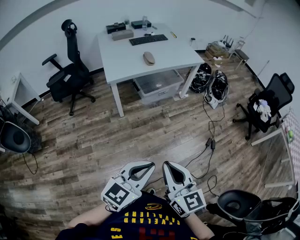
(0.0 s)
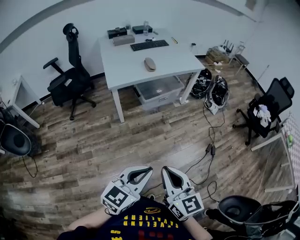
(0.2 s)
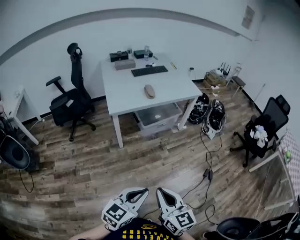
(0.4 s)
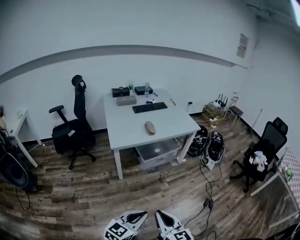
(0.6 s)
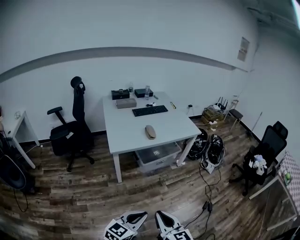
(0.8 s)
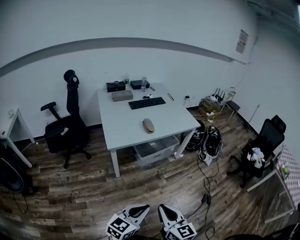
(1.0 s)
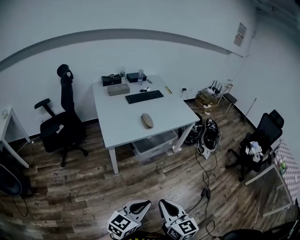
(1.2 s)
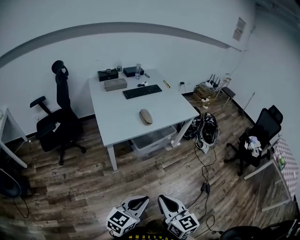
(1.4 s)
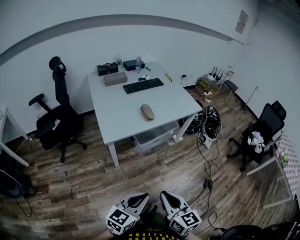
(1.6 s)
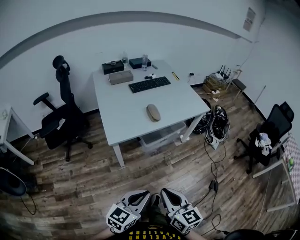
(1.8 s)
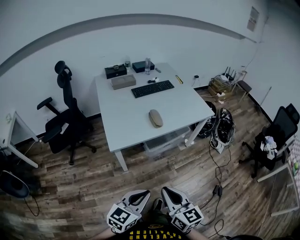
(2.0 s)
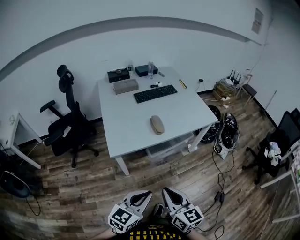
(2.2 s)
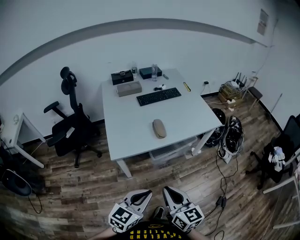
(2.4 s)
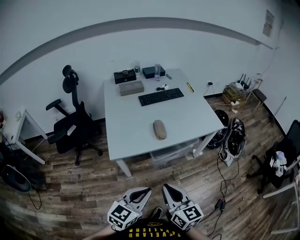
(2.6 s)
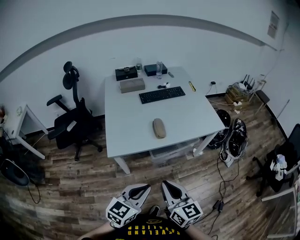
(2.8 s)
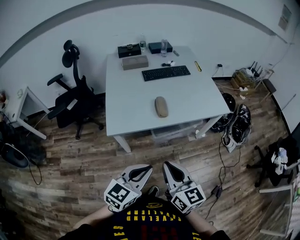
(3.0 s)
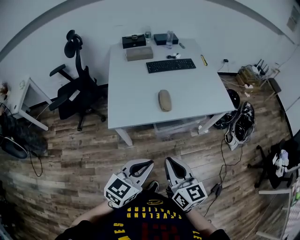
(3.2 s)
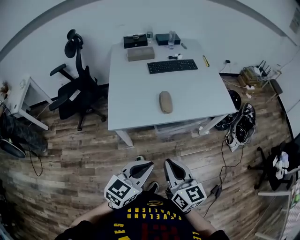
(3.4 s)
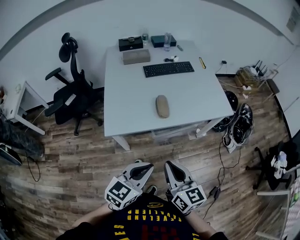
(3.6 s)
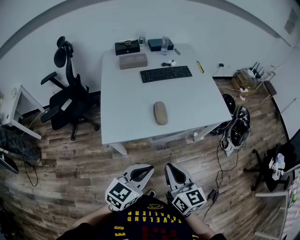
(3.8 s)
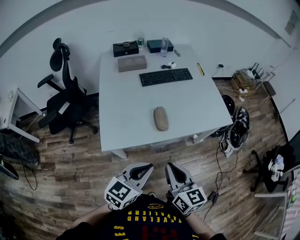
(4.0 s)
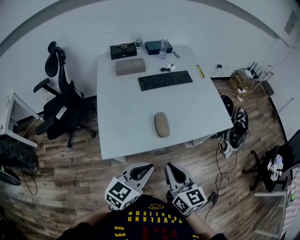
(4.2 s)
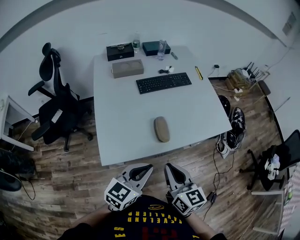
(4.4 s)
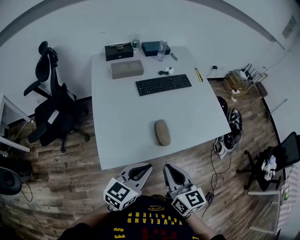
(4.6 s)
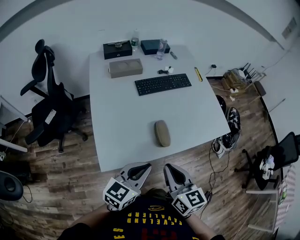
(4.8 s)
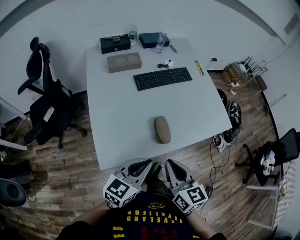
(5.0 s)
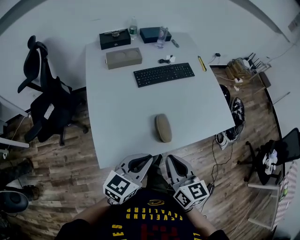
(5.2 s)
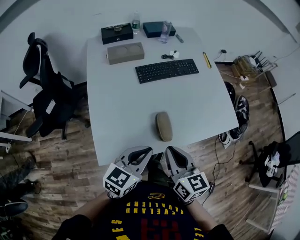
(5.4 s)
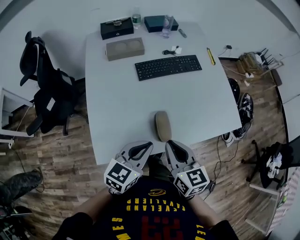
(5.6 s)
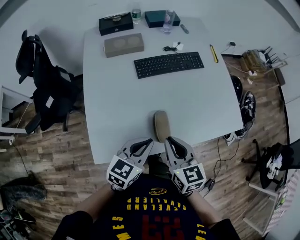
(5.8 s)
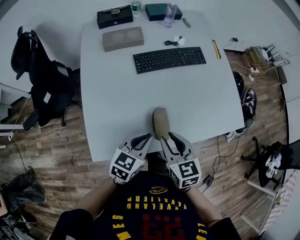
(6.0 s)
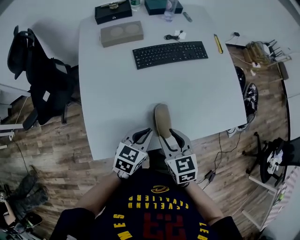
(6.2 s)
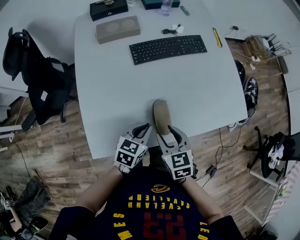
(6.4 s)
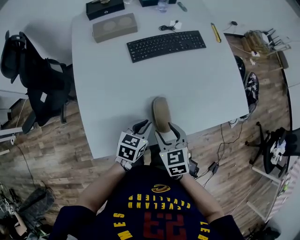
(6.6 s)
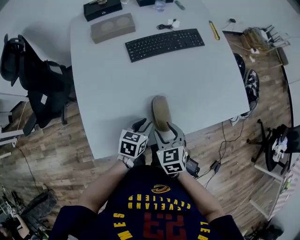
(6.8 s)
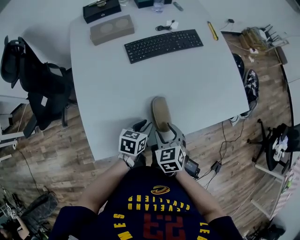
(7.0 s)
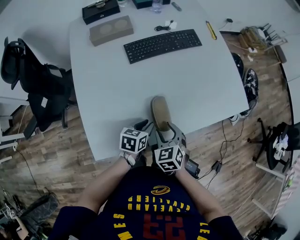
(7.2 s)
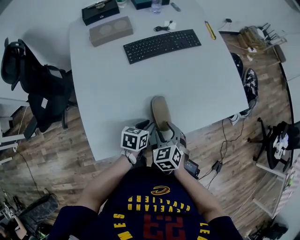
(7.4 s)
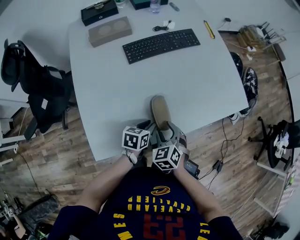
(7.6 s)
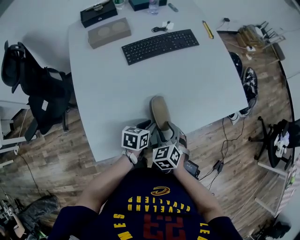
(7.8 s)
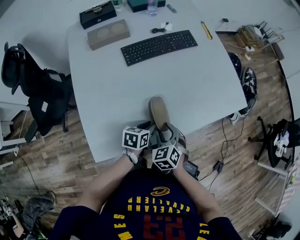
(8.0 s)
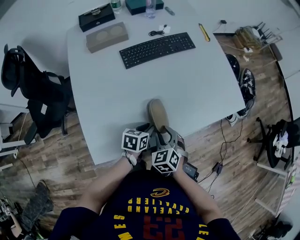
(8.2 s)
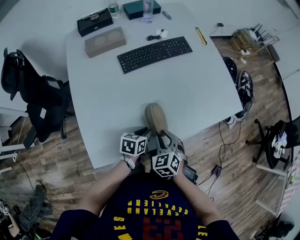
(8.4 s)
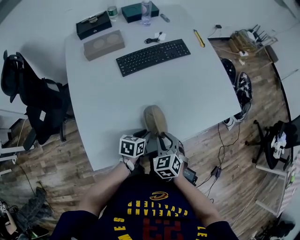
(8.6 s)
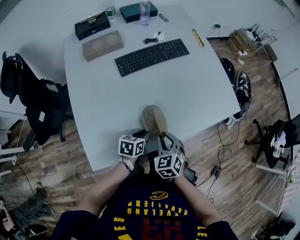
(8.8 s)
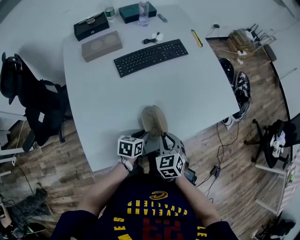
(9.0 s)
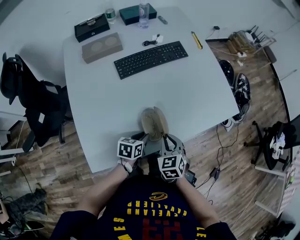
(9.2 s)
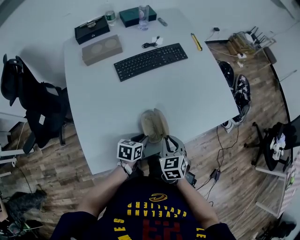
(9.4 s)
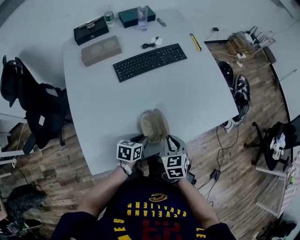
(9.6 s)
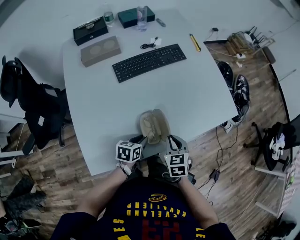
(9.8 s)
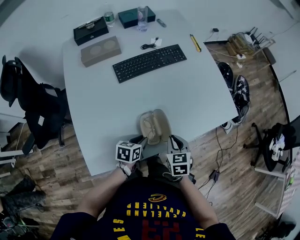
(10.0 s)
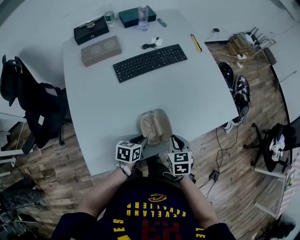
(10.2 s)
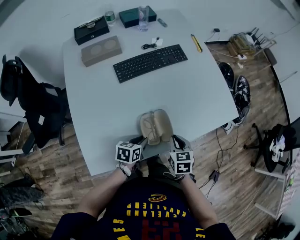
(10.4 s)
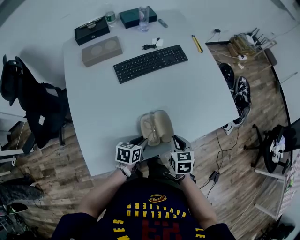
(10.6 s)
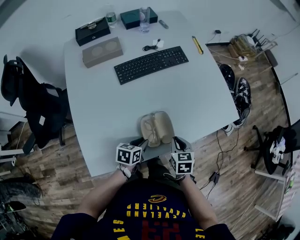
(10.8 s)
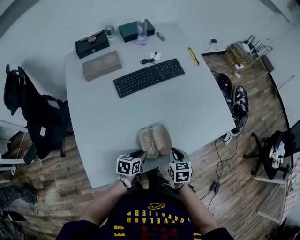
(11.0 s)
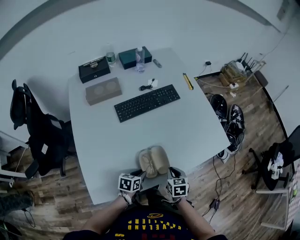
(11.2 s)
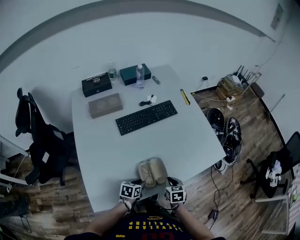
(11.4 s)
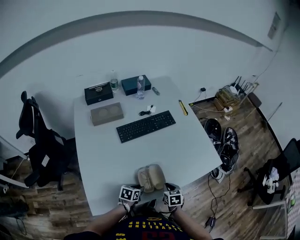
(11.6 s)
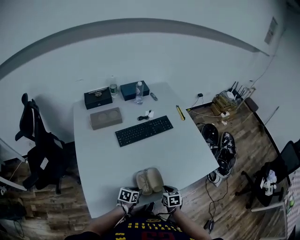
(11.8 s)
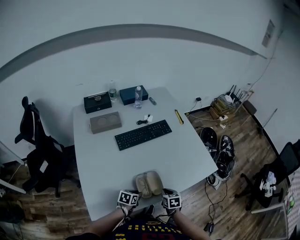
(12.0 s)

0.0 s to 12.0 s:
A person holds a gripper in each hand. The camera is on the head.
0.0 to 1.6 s: Both grippers move forward and to the left, approximately 25 cm.
1.6 to 3.0 s: Both grippers move forward, approximately 20 cm.
3.0 to 4.4 s: Both grippers travel together forward, some 20 cm.
4.4 to 6.0 s: The grippers both shift forward and downward by roughly 20 cm. The right gripper turns by some 20 degrees, and opens up.
6.0 to 7.6 s: Both grippers travel together downward, some 15 cm. The right gripper swivels roughly 30 degrees, and opens its fingers. Meanwhile the left gripper rotates approximately 30 degrees, and opens.
7.6 to 9.0 s: The right gripper closes.
9.0 to 10.4 s: The right gripper moves to the right, about 5 cm, and swivels some 20 degrees.
10.4 to 12.0 s: The grippers move only a little.

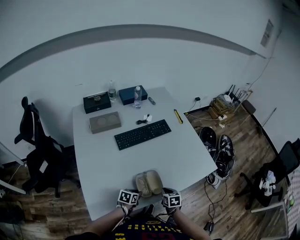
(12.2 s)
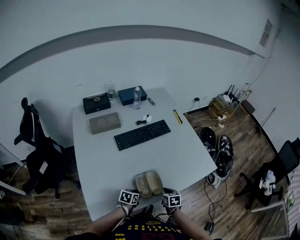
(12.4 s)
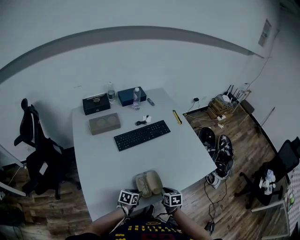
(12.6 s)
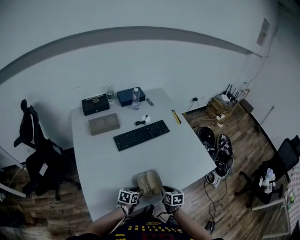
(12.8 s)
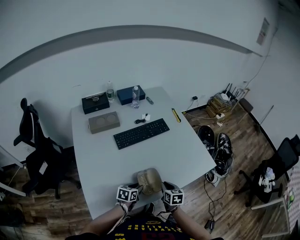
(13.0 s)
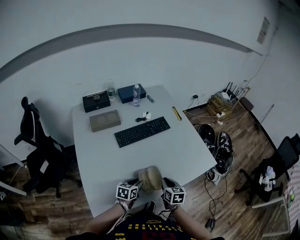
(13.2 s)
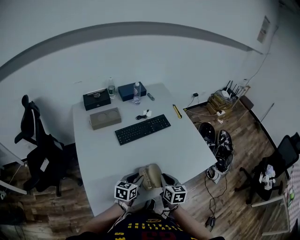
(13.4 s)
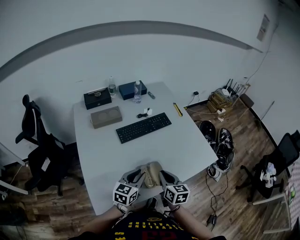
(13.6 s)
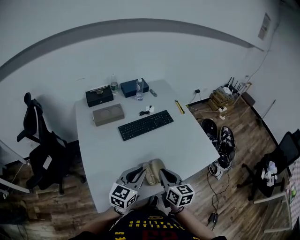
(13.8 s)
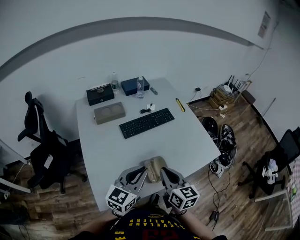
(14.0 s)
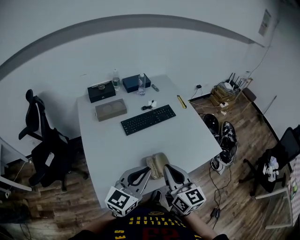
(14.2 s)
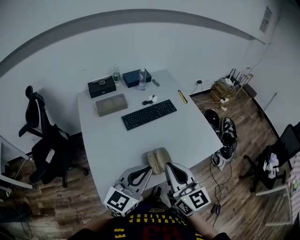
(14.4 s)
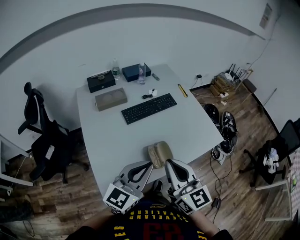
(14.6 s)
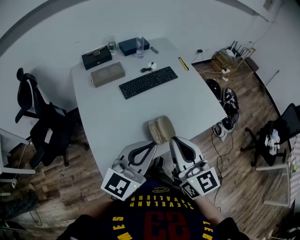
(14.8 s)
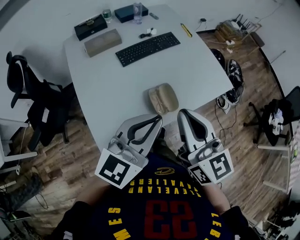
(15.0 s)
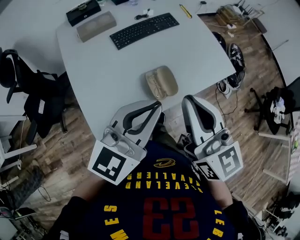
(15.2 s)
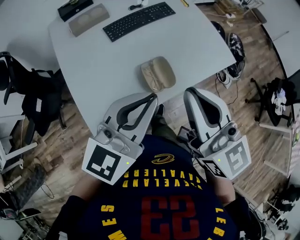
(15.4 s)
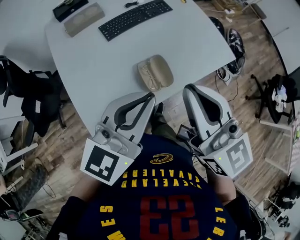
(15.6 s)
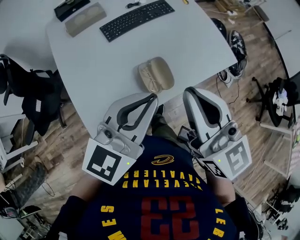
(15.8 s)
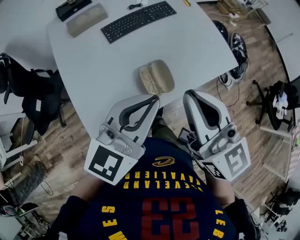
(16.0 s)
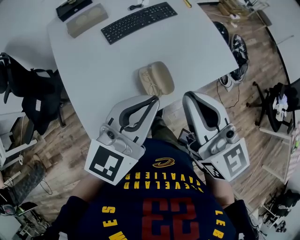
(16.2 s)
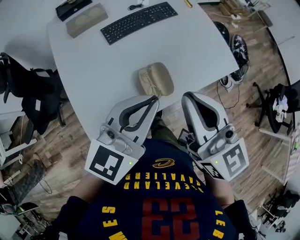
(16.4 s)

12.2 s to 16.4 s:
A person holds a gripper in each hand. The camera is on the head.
12.2 to 13.6 s: The two grippers go some 20 cm upward. The left gripper rotates some 40 degrees. Meanwhile the right gripper changes its angle by approximately 30 degrees.
13.6 to 15.0 s: The grippers both shift upward and backward by approximately 20 cm. The right gripper rotates approximately 30 degrees. The left gripper rotates approximately 20 degrees, and closes its fingers.
15.0 to 16.4 s: The right gripper ends up roughly 5 cm from where it was. Meanwhile the left gripper moves forward, roughly 5 cm.

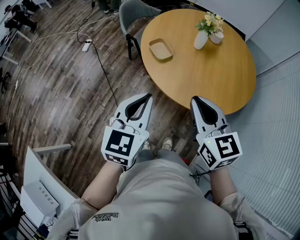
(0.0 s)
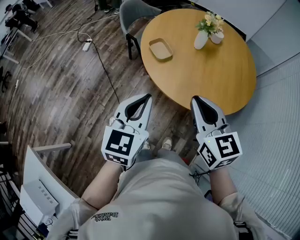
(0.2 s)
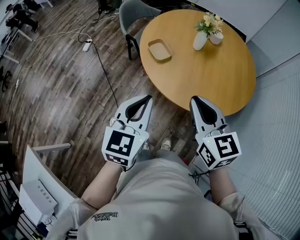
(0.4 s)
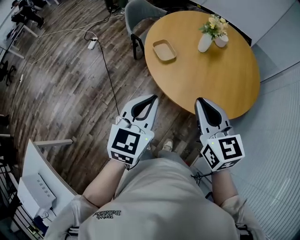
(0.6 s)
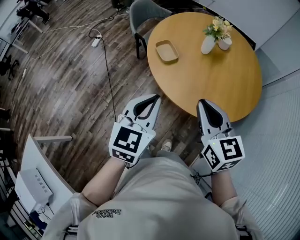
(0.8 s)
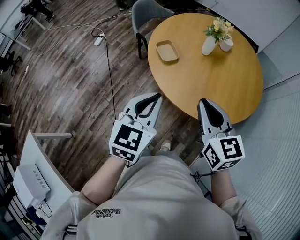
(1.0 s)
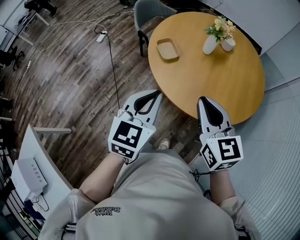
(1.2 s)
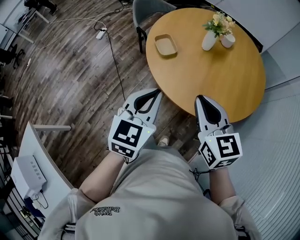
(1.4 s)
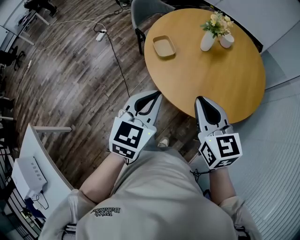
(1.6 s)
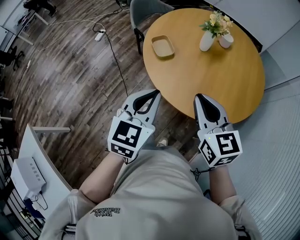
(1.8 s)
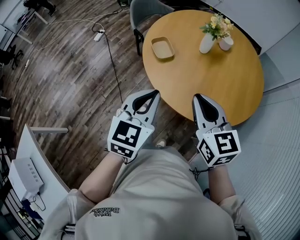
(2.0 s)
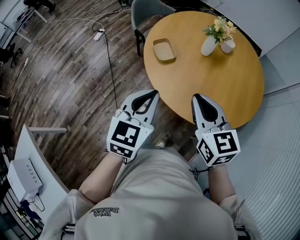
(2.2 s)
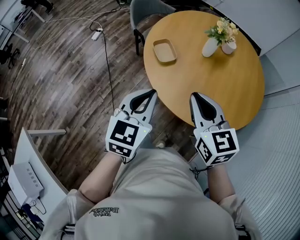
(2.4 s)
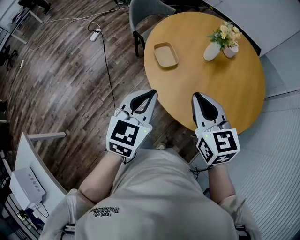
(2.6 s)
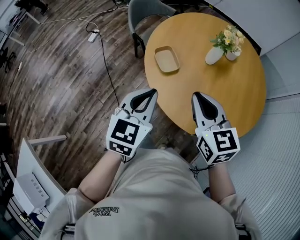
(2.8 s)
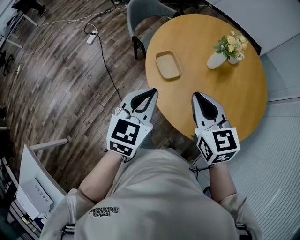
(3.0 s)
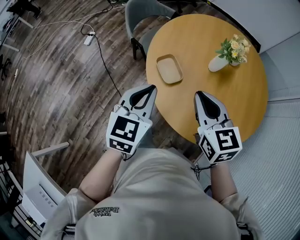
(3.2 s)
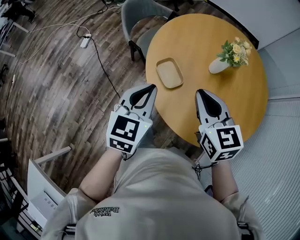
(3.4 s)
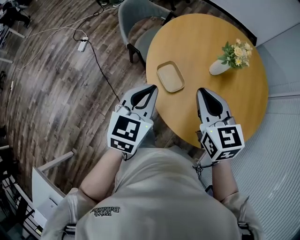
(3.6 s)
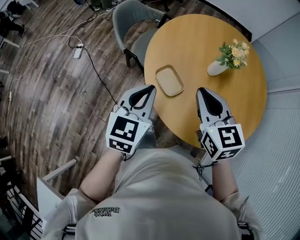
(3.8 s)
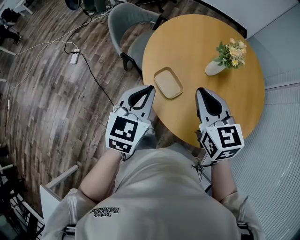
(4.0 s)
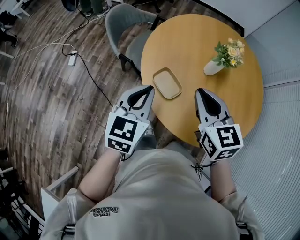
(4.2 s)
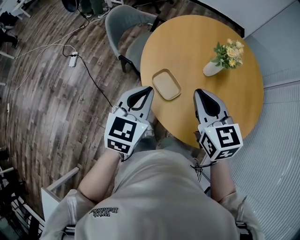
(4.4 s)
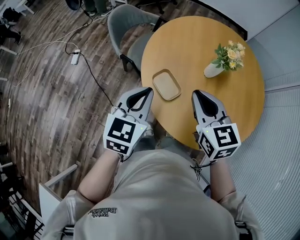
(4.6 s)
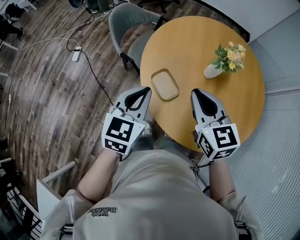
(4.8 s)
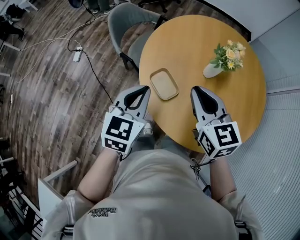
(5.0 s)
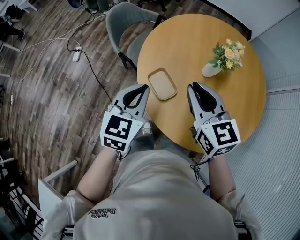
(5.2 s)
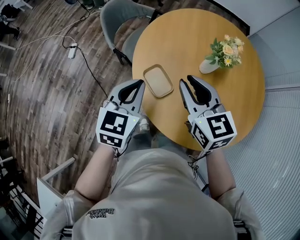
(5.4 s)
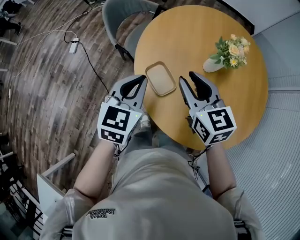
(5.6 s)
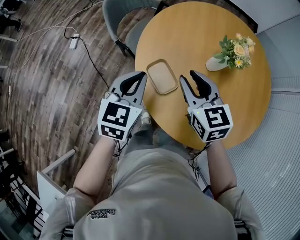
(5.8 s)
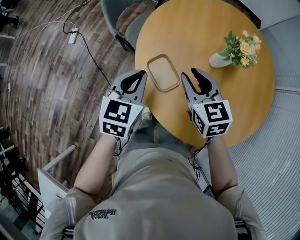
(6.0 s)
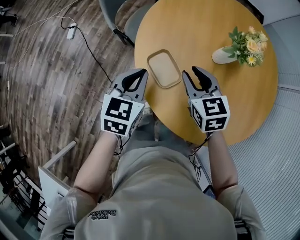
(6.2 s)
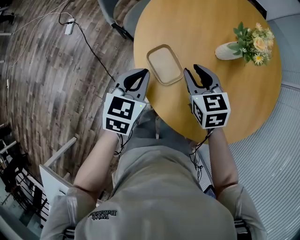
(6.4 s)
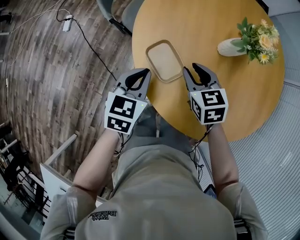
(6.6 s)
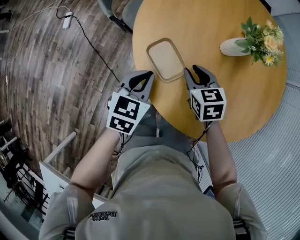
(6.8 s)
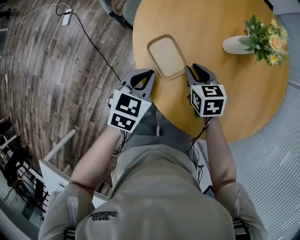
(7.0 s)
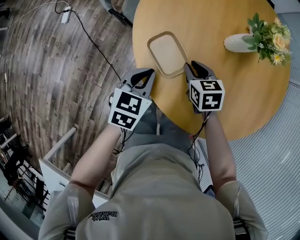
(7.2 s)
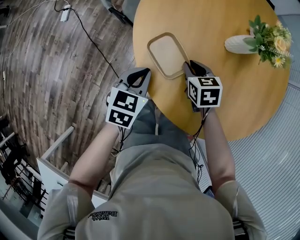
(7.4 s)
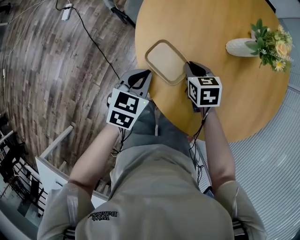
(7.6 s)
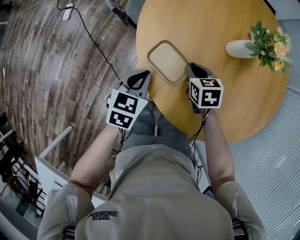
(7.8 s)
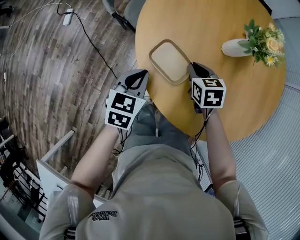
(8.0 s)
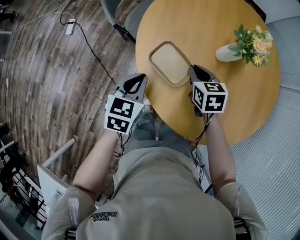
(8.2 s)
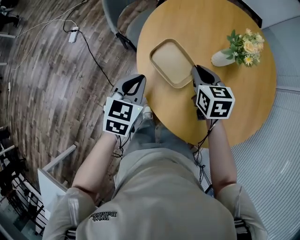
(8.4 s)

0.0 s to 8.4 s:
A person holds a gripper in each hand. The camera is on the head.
0.0 to 1.4 s: Both grippers move to the right, approximately 5 cm.
1.4 to 2.8 s: The right gripper heads forward, covering about 15 cm; the left gripper is displaced forward and to the left by roughly 15 cm.
2.8 to 4.2 s: The left gripper travels forward and to the left by approximately 20 cm. Meanwhile the right gripper moves forward, some 15 cm.
4.2 to 5.6 s: The right gripper travels forward by about 5 cm, and opens. Meanwhile the left gripper changes place by approximately 5 cm.
5.6 to 7.0 s: Both grippers move downward, about 20 cm. The right gripper rotates approximately 30 degrees.
7.0 to 8.4 s: Both grippers move upward, about 10 cm.
